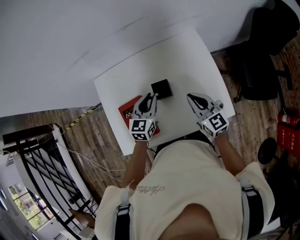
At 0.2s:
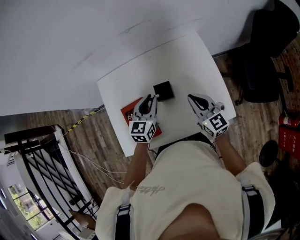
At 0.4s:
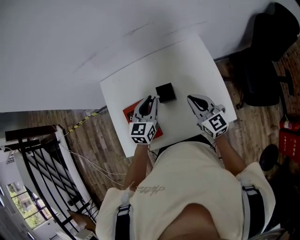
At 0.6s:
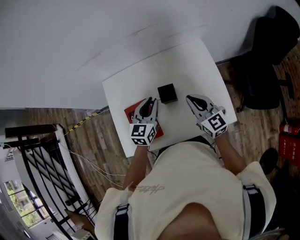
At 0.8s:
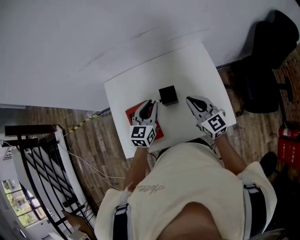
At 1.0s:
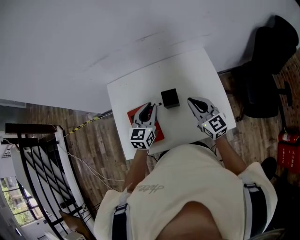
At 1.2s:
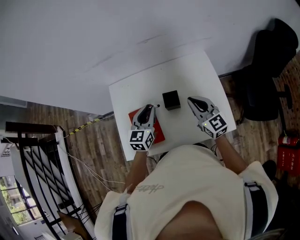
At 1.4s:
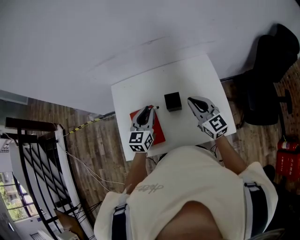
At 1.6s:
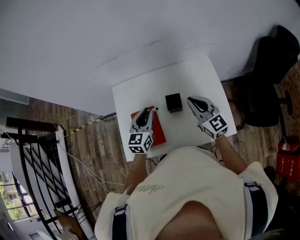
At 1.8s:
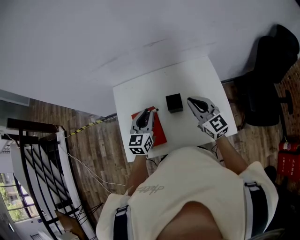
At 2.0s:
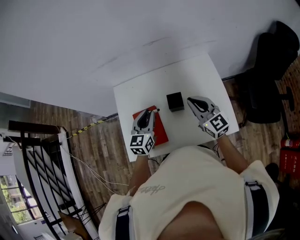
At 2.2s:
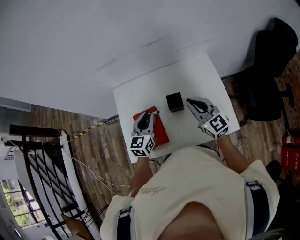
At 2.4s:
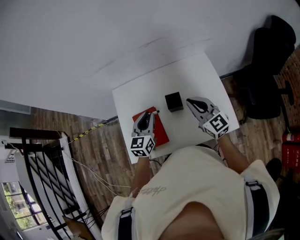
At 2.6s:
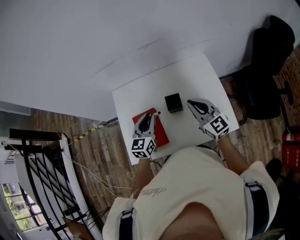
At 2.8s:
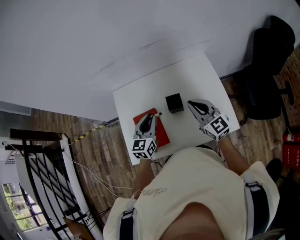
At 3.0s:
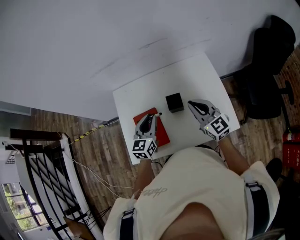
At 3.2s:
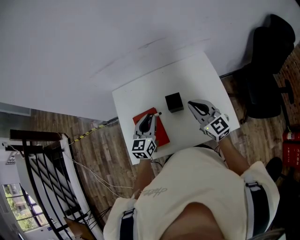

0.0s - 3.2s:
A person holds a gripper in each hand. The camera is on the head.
0.0s - 1.6s: The right gripper travels upward by about 10 cm. The left gripper travels upward and to the left by roughly 10 cm.
1.6s - 3.2s: The grippers make only small movements.

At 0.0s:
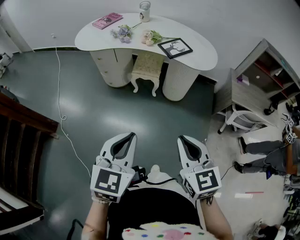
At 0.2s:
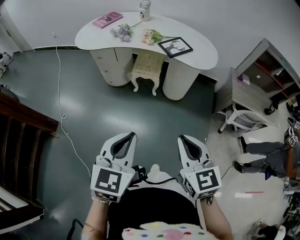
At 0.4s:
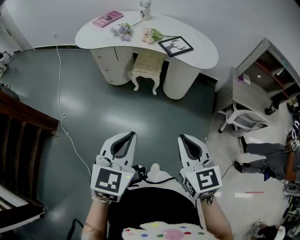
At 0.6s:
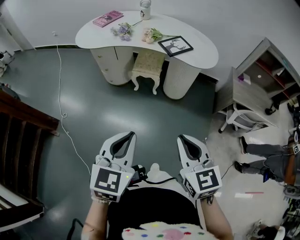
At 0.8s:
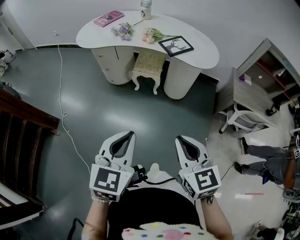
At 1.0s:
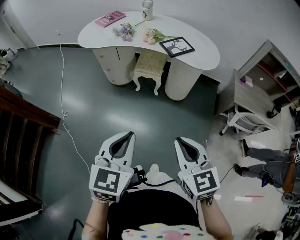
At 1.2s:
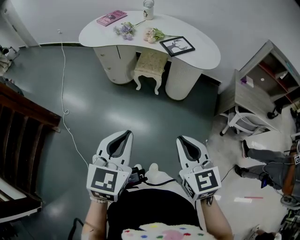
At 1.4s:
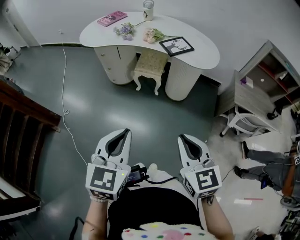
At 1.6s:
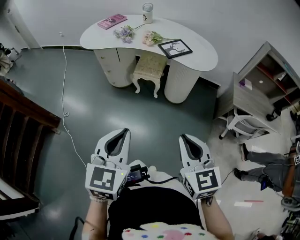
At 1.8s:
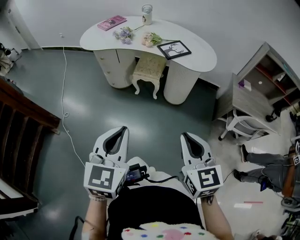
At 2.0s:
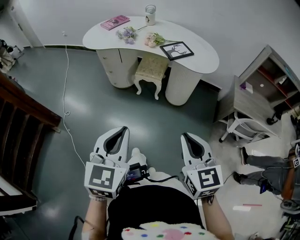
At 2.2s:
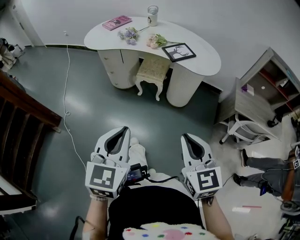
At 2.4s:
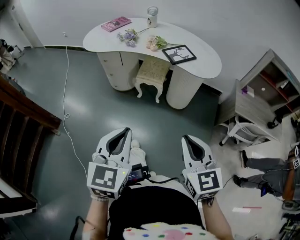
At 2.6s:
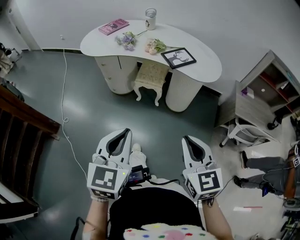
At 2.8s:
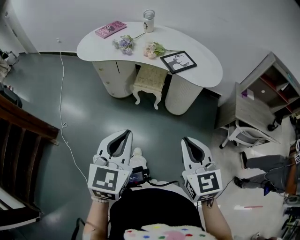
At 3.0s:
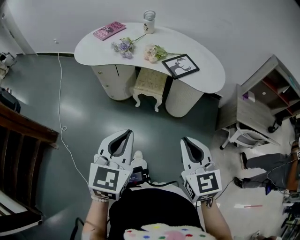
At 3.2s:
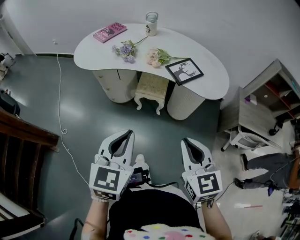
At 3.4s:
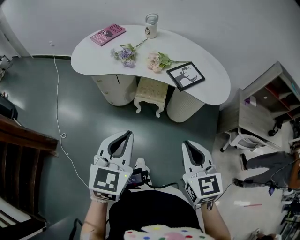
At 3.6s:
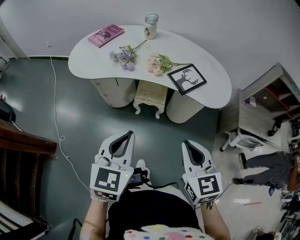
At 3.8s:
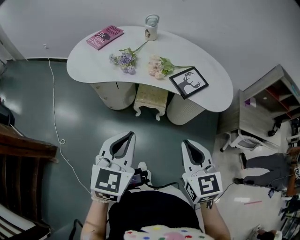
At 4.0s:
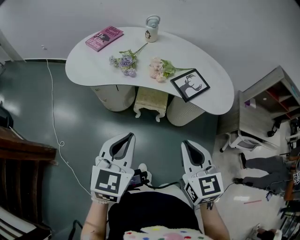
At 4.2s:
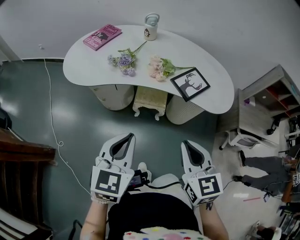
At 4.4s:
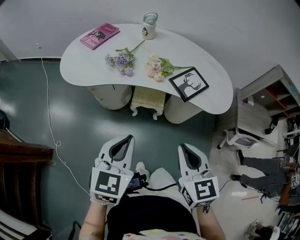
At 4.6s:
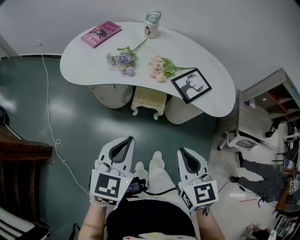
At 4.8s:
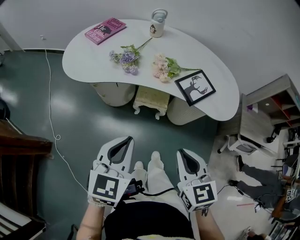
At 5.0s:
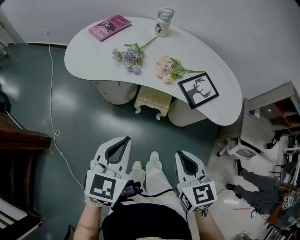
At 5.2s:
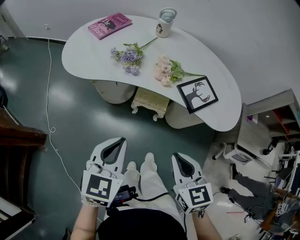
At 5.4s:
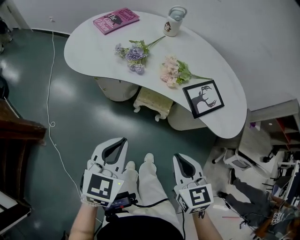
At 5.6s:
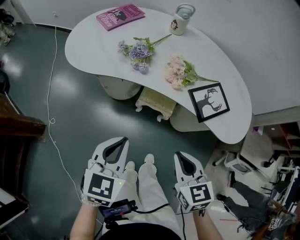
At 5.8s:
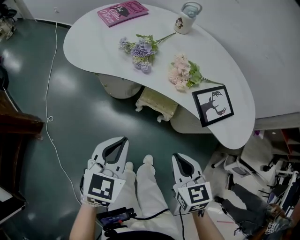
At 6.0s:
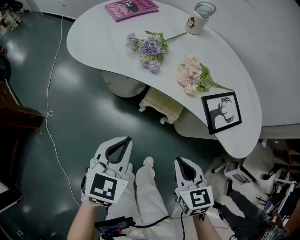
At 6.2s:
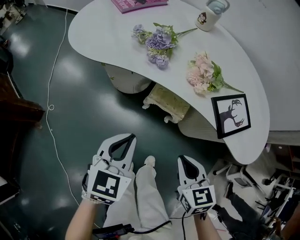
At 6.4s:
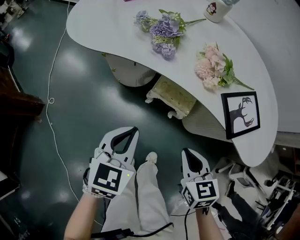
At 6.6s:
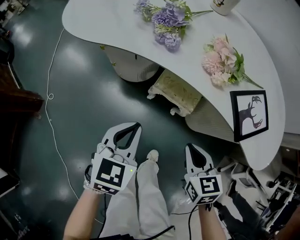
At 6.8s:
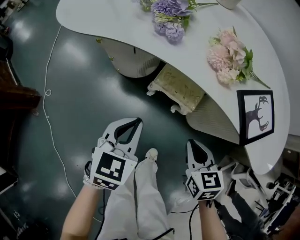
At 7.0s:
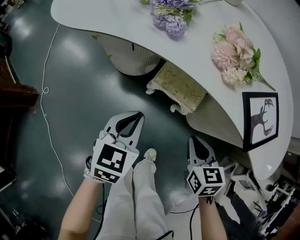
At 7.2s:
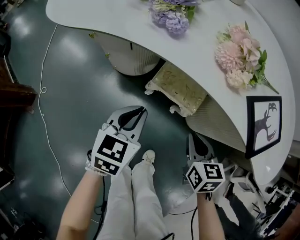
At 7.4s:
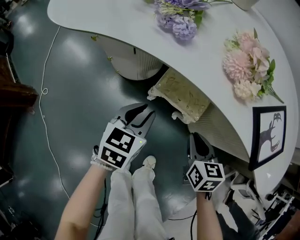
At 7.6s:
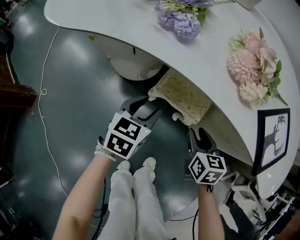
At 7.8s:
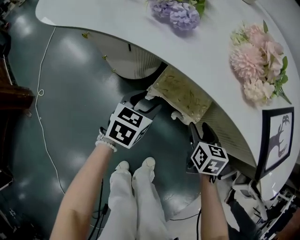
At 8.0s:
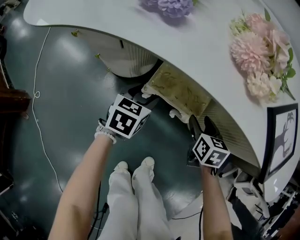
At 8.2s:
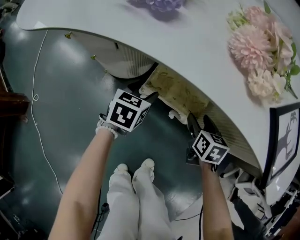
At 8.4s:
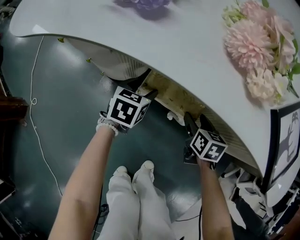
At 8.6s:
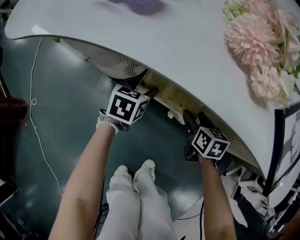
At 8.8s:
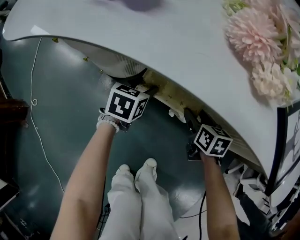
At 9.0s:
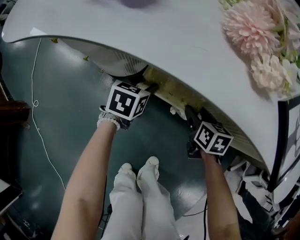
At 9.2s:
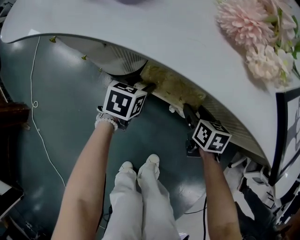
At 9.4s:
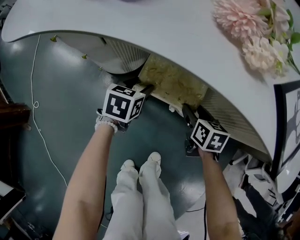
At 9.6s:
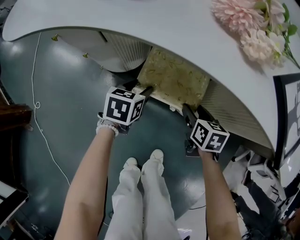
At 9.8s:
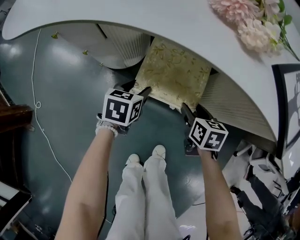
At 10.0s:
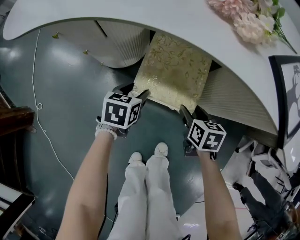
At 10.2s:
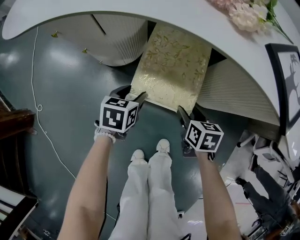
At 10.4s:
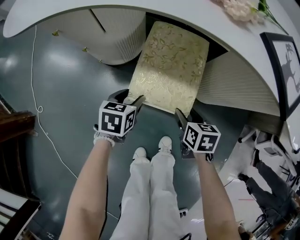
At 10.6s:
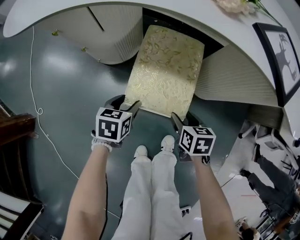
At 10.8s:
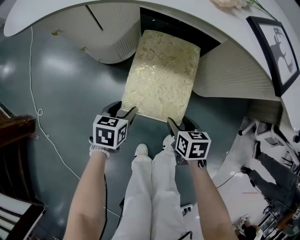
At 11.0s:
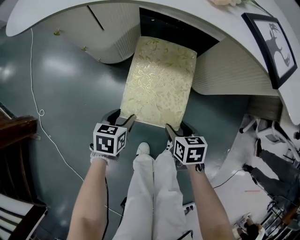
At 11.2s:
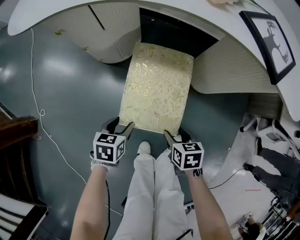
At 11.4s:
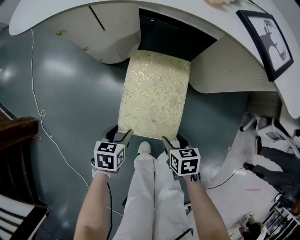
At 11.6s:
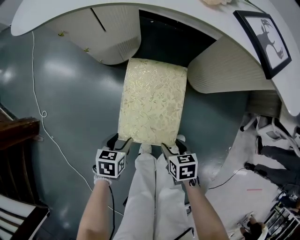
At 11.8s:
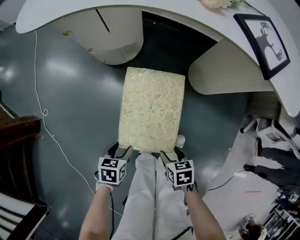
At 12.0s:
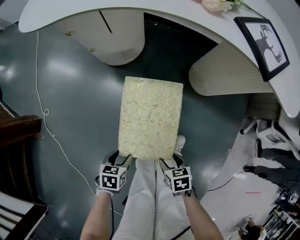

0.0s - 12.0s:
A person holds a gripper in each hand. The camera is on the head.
0.0s - 1.6s: The grippers make only small movements.
1.6s - 3.0s: The two grippers go some 15 cm forward.
3.0s - 4.4s: The grippers both shift forward and to the left by roughly 20 cm.
4.4s - 6.0s: The two grippers go roughly 20 cm downward and forward. The right gripper changes its angle by about 20 degrees.
6.0s - 7.6s: The grippers both shift downward and forward by about 30 cm. The left gripper opens its fingers; the right gripper opens up.
7.6s - 9.0s: Both grippers move downward and forward, about 15 cm. The right gripper opens.
9.0s - 10.4s: Both grippers travel together backward, some 15 cm.
10.4s - 12.0s: Both grippers travel together backward, about 30 cm. The right gripper rotates some 20 degrees.

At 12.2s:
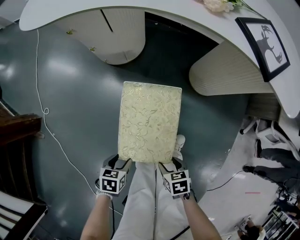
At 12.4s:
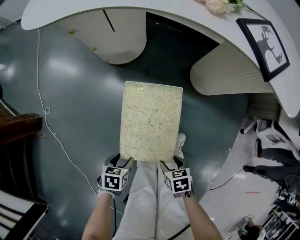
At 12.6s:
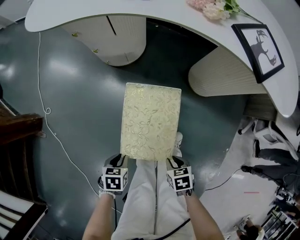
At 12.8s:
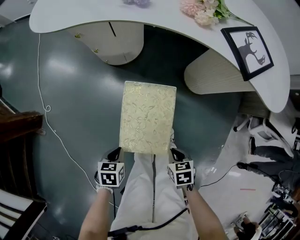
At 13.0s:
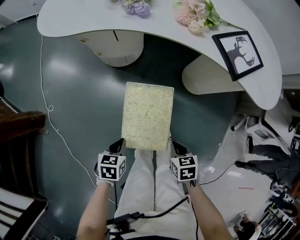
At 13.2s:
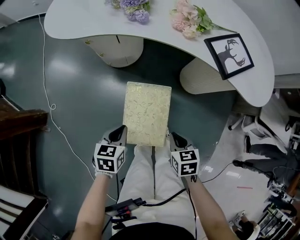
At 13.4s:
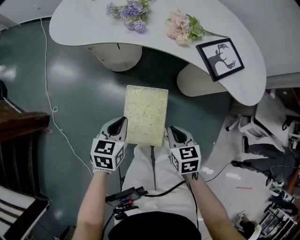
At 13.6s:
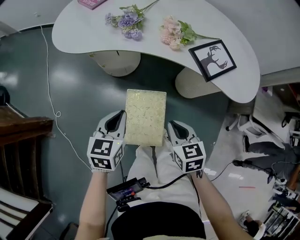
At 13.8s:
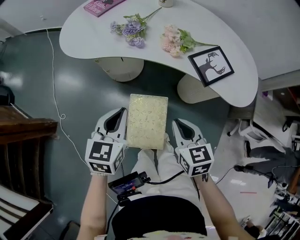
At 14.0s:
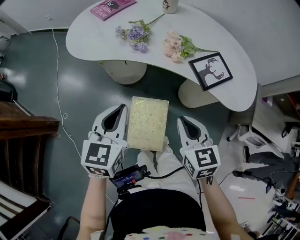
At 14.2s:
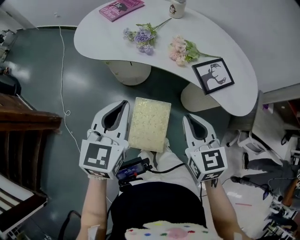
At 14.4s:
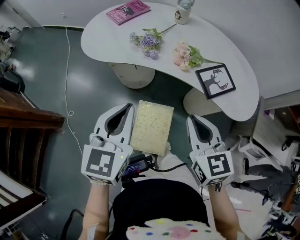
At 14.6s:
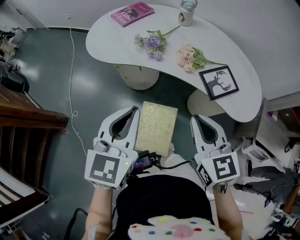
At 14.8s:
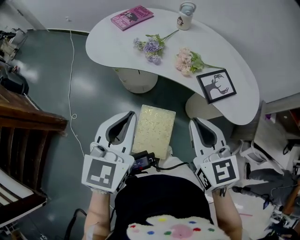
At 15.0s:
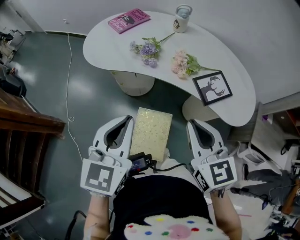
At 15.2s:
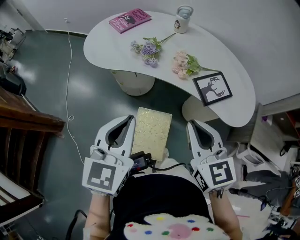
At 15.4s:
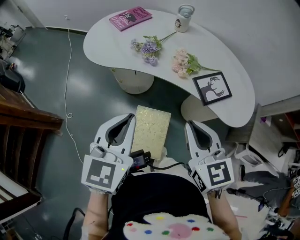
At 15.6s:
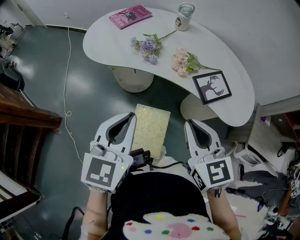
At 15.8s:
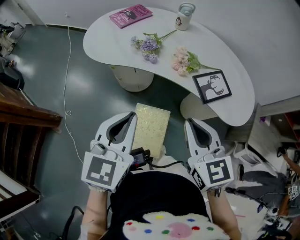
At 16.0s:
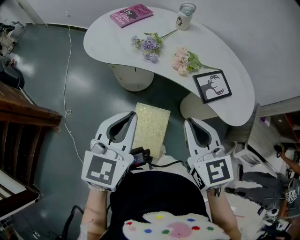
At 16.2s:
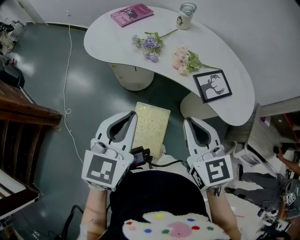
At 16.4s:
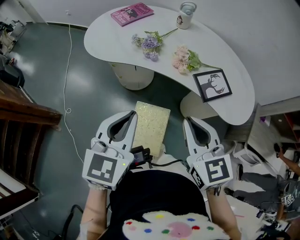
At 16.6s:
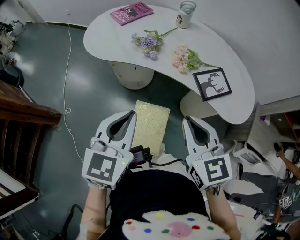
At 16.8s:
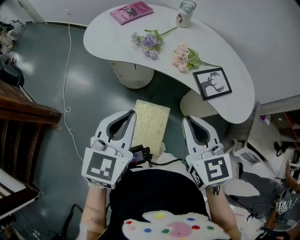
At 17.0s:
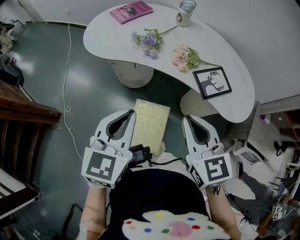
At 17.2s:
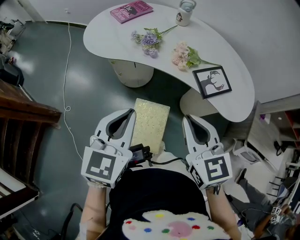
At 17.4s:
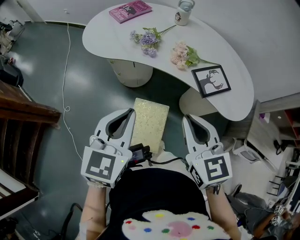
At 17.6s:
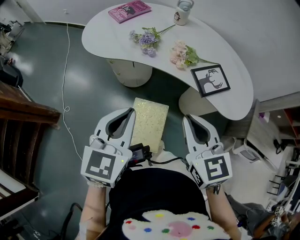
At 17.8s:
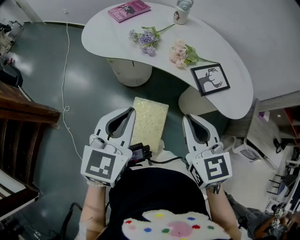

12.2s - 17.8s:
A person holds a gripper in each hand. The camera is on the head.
12.2s - 13.6s: The two grippers go approximately 40 cm upward and forward. The left gripper points its fingers roughly 30 degrees further upward, and closes. Meanwhile the right gripper rotates roughly 30 degrees, and closes.
13.6s - 15.0s: Both grippers travel together upward, some 25 cm. The left gripper changes its angle by some 20 degrees. The right gripper rotates approximately 30 degrees.
15.0s - 17.8s: The grippers make only small movements.

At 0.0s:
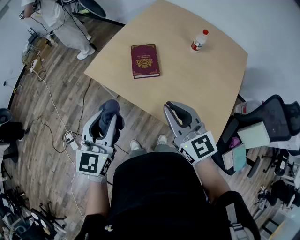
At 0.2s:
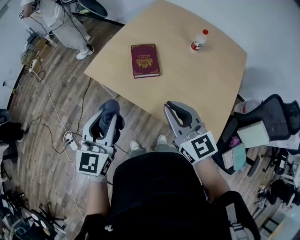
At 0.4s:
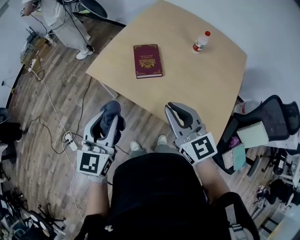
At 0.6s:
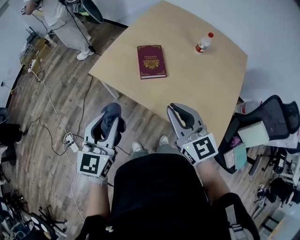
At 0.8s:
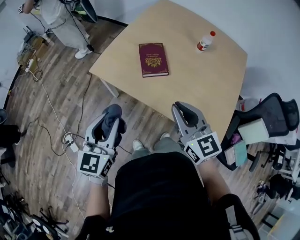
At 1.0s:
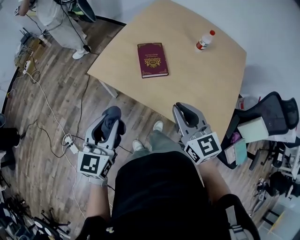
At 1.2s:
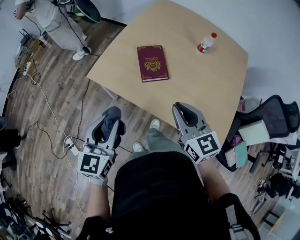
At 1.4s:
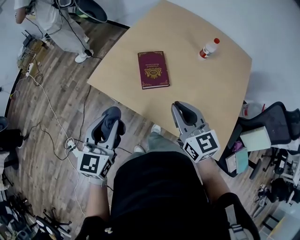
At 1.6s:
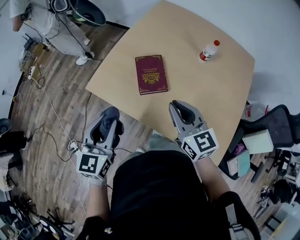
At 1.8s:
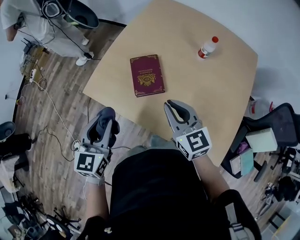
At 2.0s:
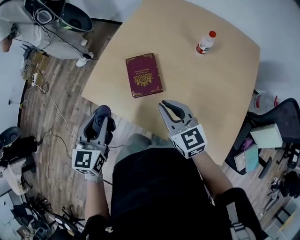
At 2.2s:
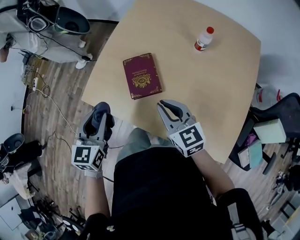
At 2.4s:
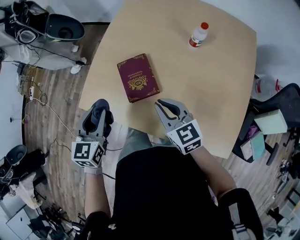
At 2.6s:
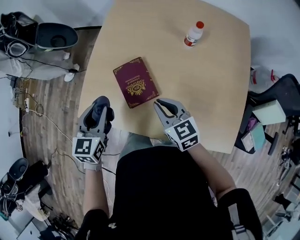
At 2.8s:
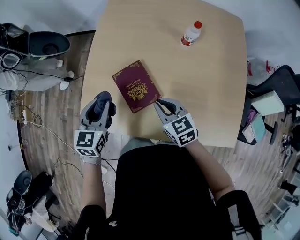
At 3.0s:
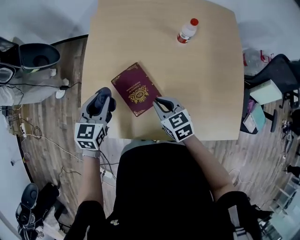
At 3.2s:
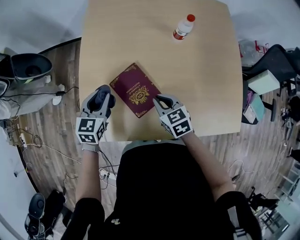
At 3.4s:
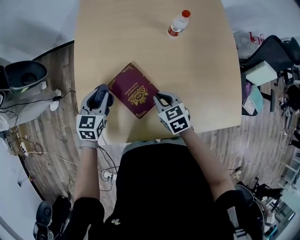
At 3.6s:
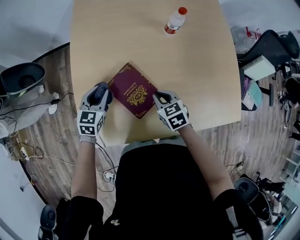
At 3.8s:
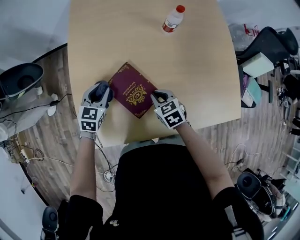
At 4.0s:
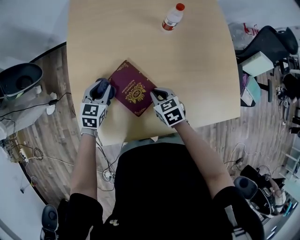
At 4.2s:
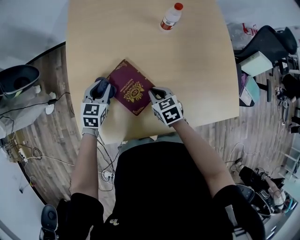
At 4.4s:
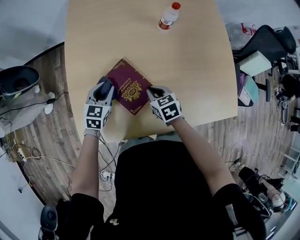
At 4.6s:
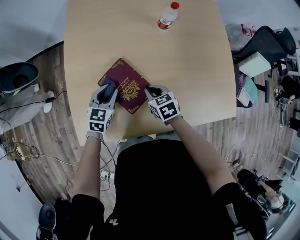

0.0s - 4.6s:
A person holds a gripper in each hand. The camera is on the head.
0.0s - 1.6s: The grippers both shift forward and downward by approximately 15 cm.
1.6s - 3.0s: The left gripper is displaced forward and downward by some 30 cm, and swivels some 30 degrees; the right gripper moves downward and forward, some 20 cm, and swivels approximately 30 degrees.
3.0s - 4.6s: The left gripper heads downward and to the right, covering roughly 15 cm. The right gripper moves downward, approximately 10 cm.
